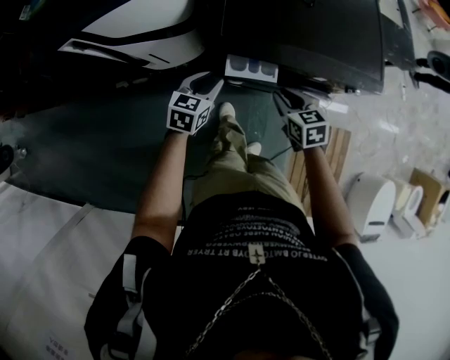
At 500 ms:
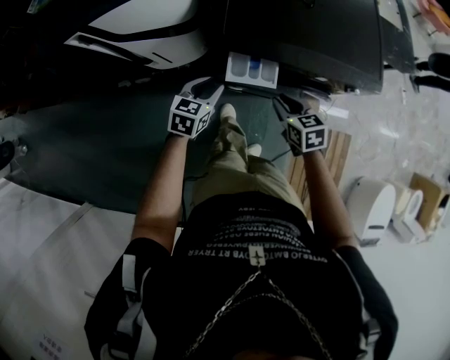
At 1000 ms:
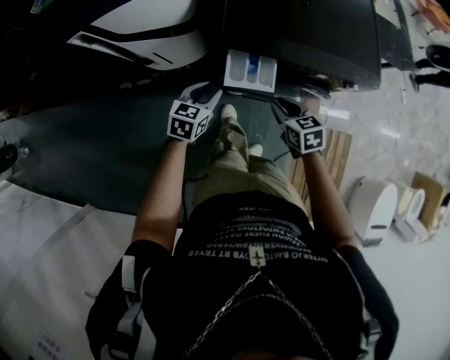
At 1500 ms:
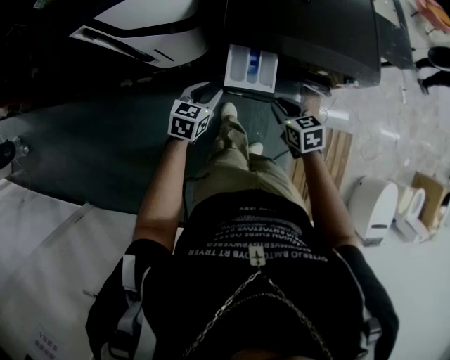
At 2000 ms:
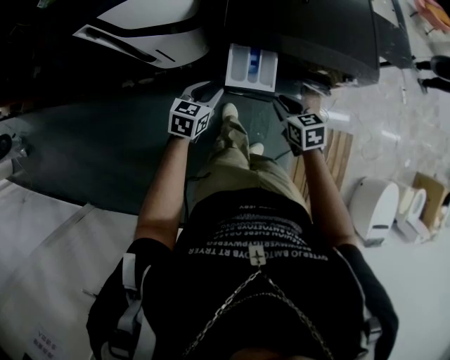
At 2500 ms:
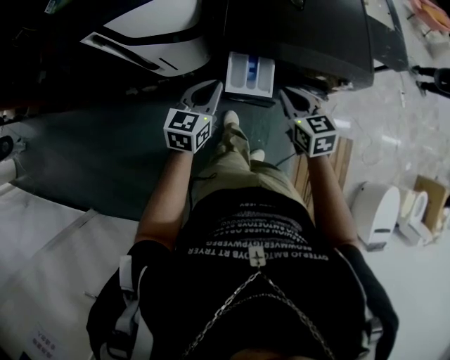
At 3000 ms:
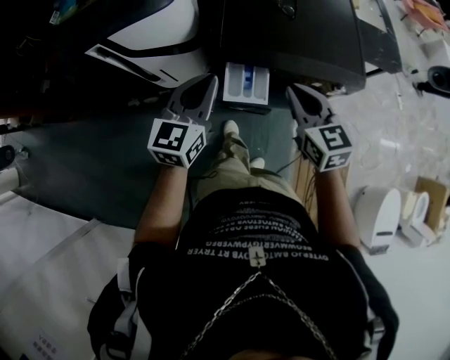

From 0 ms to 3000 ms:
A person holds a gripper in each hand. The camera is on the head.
From 0 ms to 1500 ms: Both grippers travel together backward, approximately 5 cm.
From 1500 ms to 3000 ms: The two grippers go approximately 25 cm upward. The right gripper turns by about 30 degrees; the left gripper swivels roughly 30 degrees, and closes.

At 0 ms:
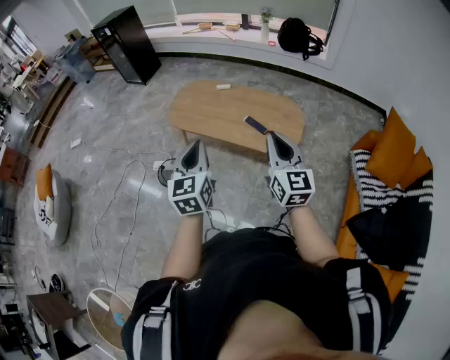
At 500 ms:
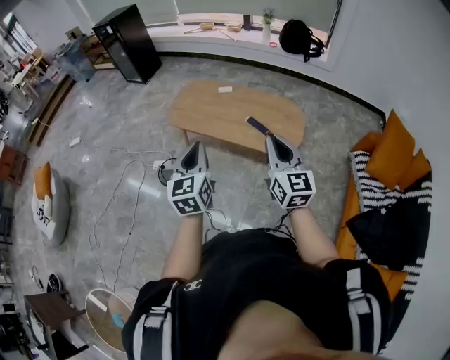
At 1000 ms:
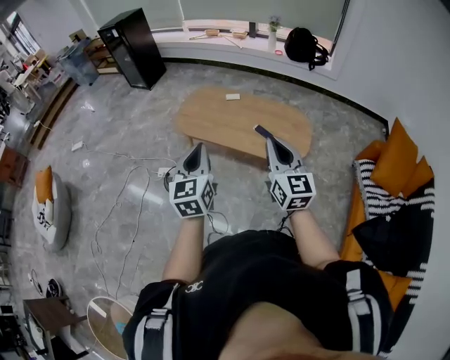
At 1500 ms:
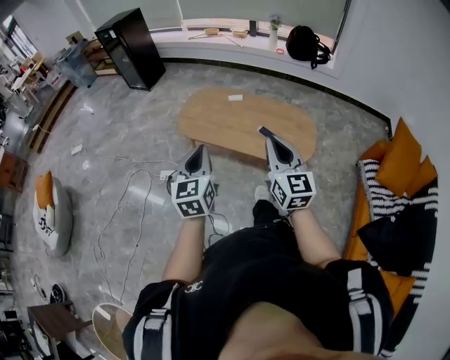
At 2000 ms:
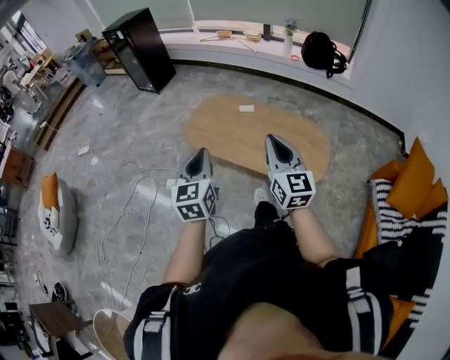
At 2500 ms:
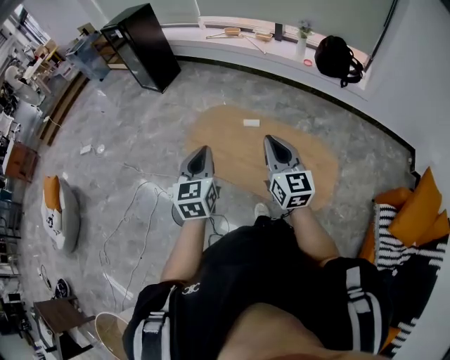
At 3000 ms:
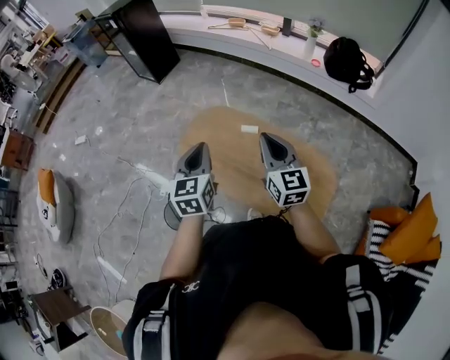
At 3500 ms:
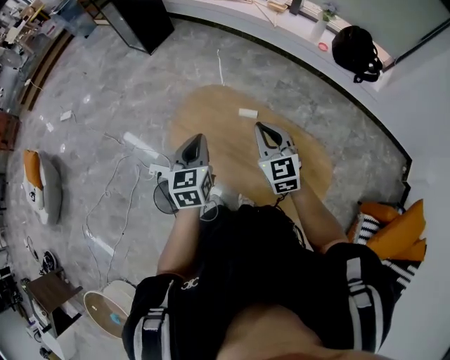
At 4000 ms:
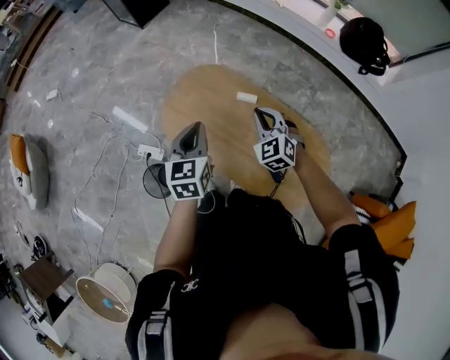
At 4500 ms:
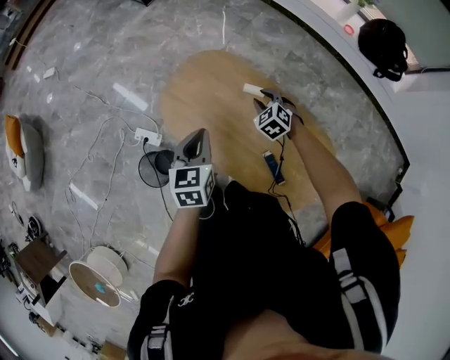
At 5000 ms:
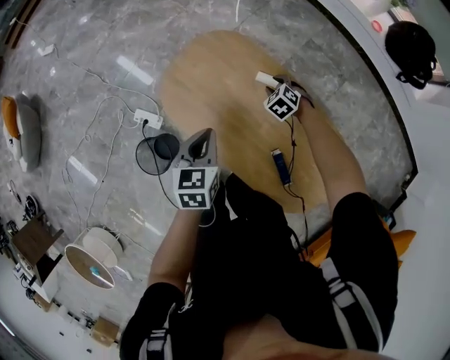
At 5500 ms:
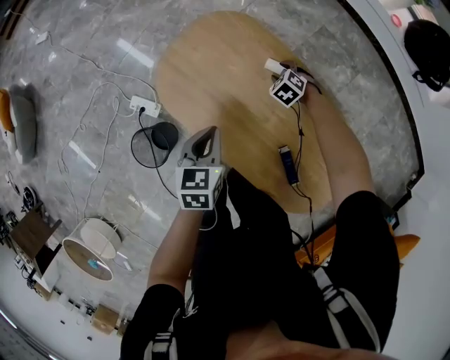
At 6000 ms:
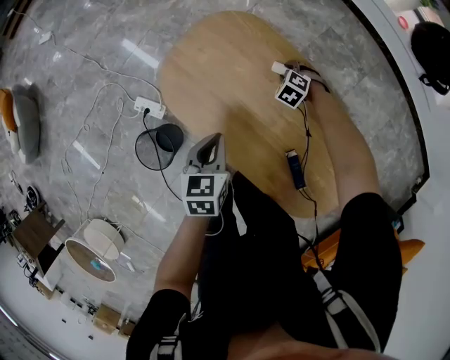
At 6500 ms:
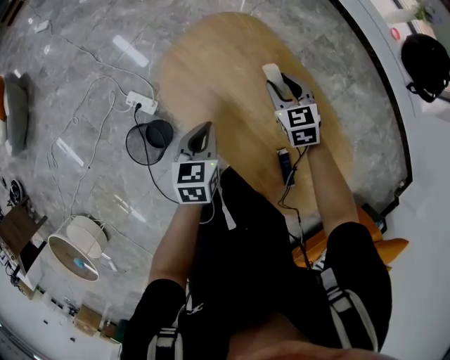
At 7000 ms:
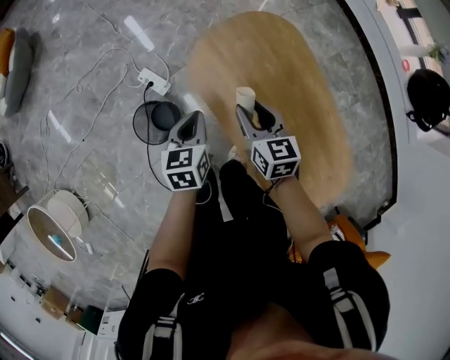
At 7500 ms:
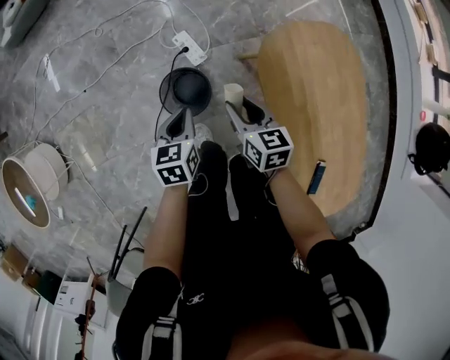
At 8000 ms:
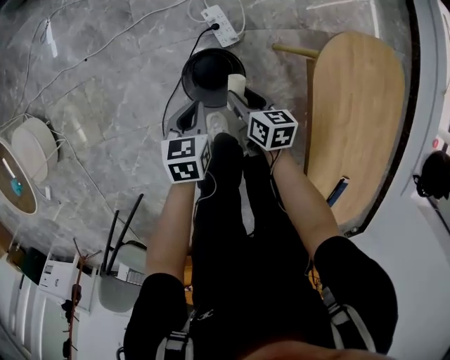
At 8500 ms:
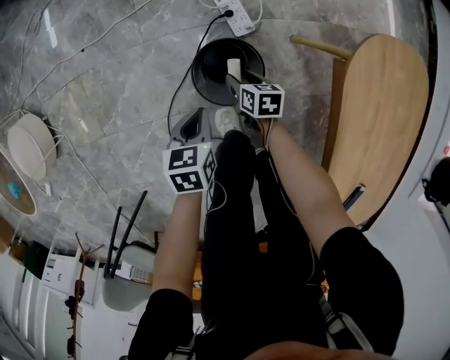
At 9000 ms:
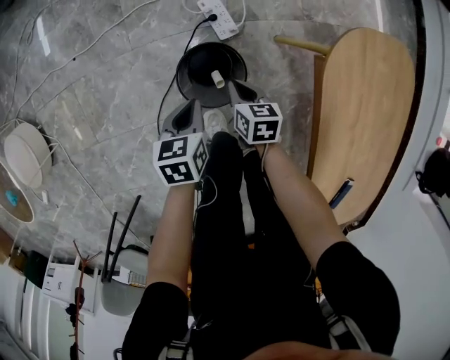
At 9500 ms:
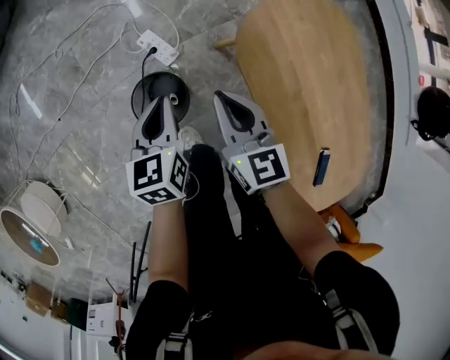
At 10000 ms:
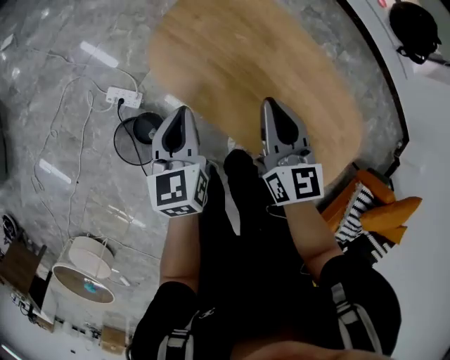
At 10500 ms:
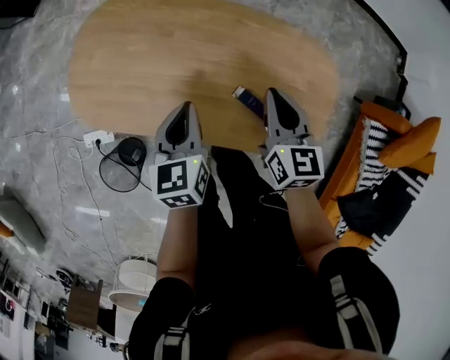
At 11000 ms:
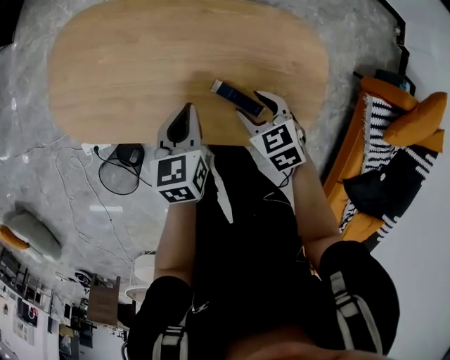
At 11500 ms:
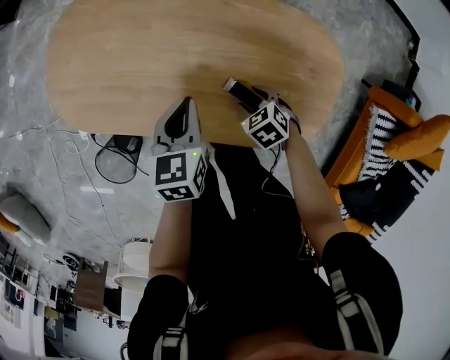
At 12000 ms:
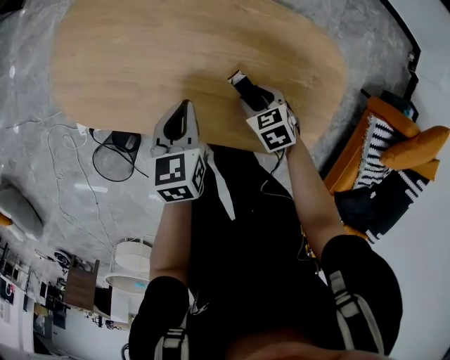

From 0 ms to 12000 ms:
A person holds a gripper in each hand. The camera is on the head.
From 0 ms to 2000 ms: Both grippers travel together forward and to the left, approximately 20 cm.
From 2000 ms to 4000 ms: The left gripper moves forward, some 40 cm, while the right gripper heads forward and downward, covering approximately 50 cm, and tilts its fingers roughly 40 degrees downward.
From 4000 ms to 6000 ms: The left gripper shifts some 25 cm downward, and rotates approximately 20 degrees. The right gripper goes approximately 40 cm downward and forward, points its fingers approximately 40 degrees further downward, and opens.
From 6000 ms to 8000 ms: The pair of grippers is taken some 60 cm. The left gripper turns by about 40 degrees. The right gripper swivels roughly 60 degrees.
From 8000 ms to 10000 ms: The left gripper shifts by roughly 40 cm, and swivels roughly 40 degrees; the right gripper ends up roughly 50 cm from where it was, rotates some 60 degrees, and closes up.
From 10000 ms to 12000 ms: The left gripper moves some 30 cm, and swivels roughly 30 degrees. Meanwhile the right gripper ends up about 40 cm from where it was, angles its fingers downward, by about 50 degrees, and opens its fingers.

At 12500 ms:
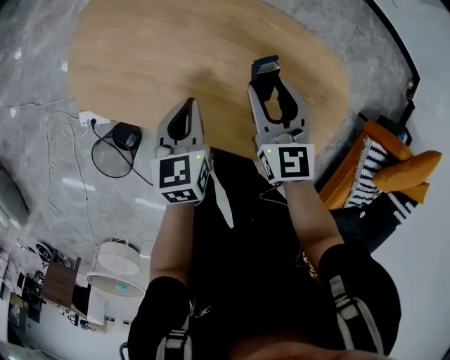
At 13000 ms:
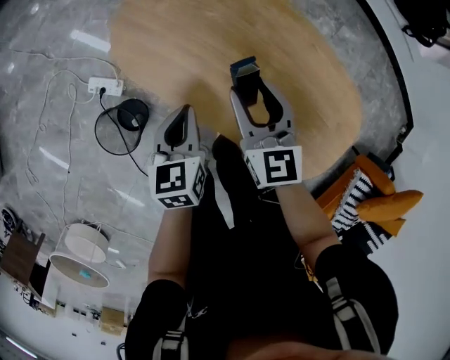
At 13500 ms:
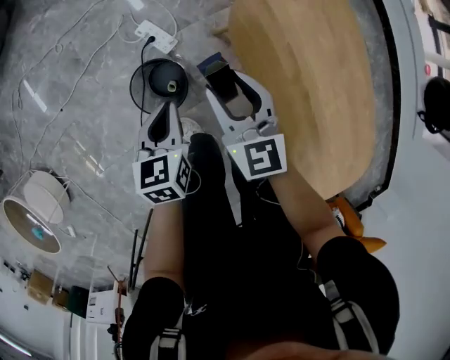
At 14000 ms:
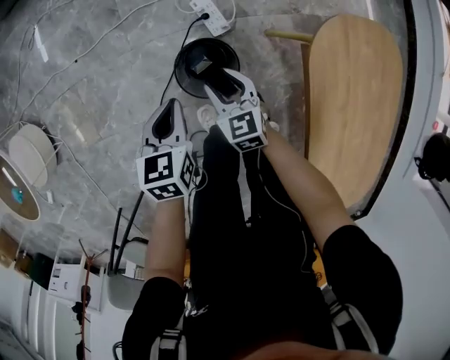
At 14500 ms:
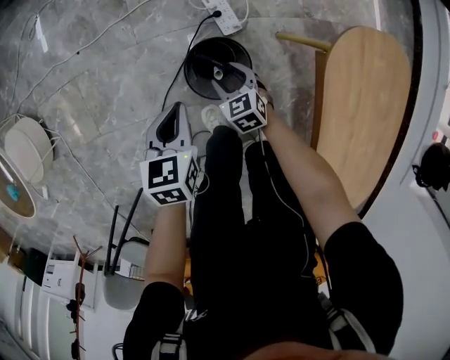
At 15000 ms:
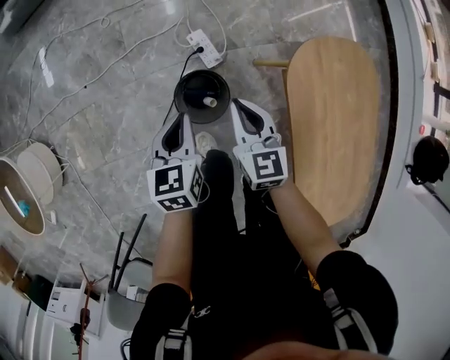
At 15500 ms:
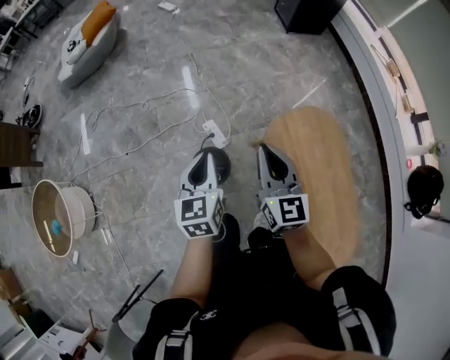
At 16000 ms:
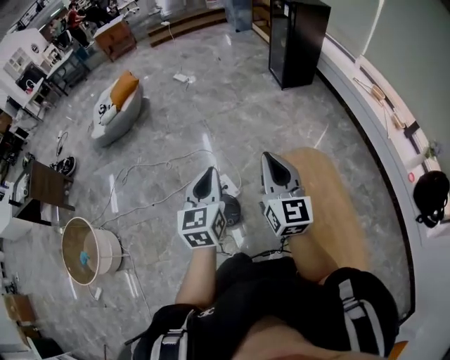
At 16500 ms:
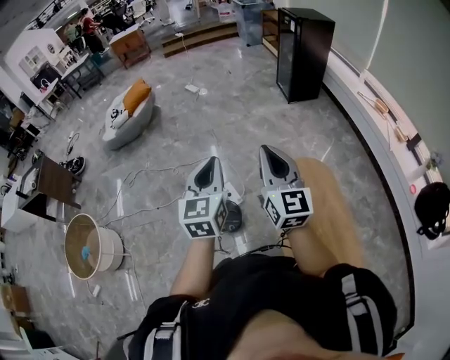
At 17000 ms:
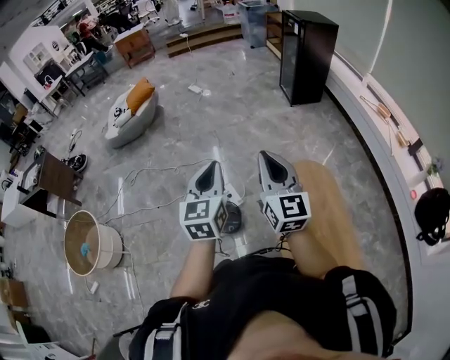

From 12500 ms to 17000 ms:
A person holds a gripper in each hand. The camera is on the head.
From 12500 ms to 14500 ms: The pair of grippers is taken roughly 70 cm. The left gripper changes its angle by roughly 60 degrees; the right gripper turns by roughly 90 degrees.
From 14500 ms to 17000 ms: The grippers both shift upward by some 70 cm. The left gripper tilts its fingers roughly 40 degrees upward, while the right gripper tilts its fingers about 60 degrees upward, and closes its fingers.

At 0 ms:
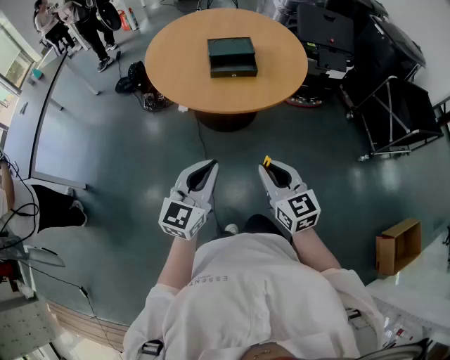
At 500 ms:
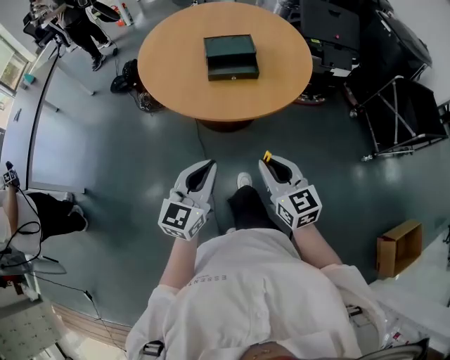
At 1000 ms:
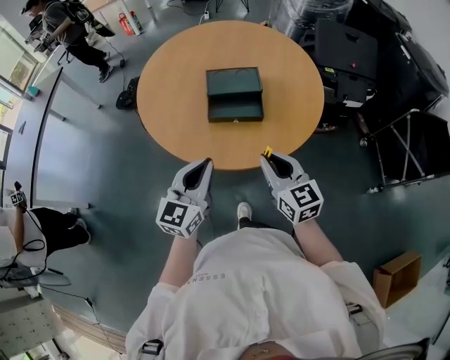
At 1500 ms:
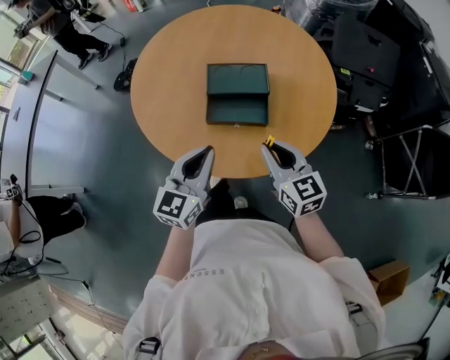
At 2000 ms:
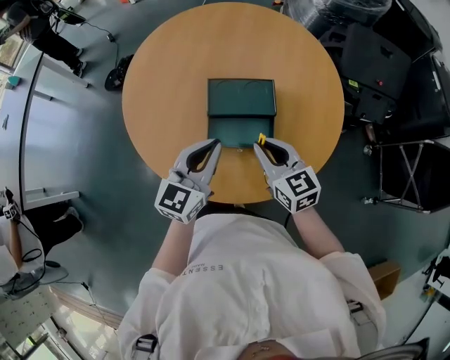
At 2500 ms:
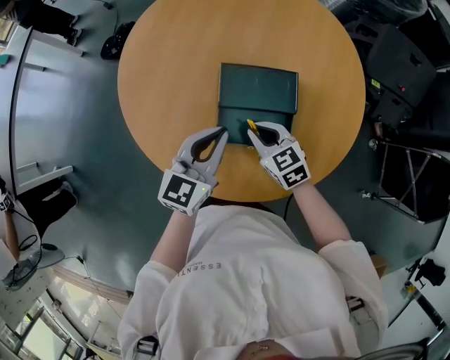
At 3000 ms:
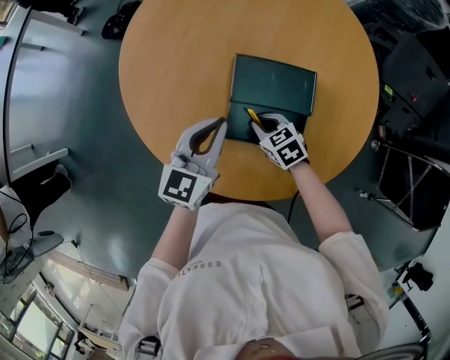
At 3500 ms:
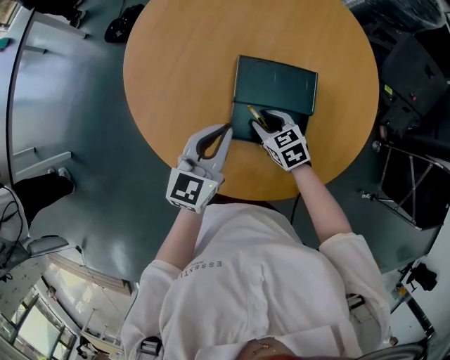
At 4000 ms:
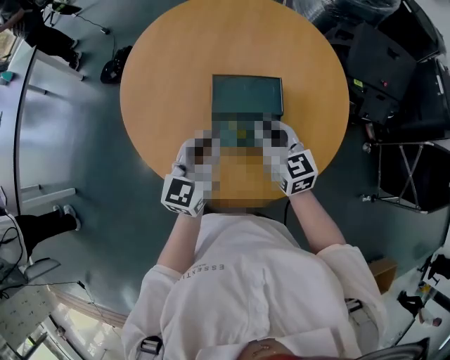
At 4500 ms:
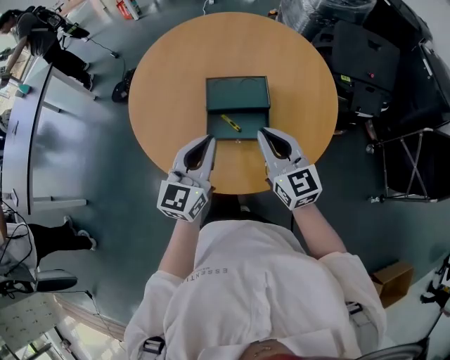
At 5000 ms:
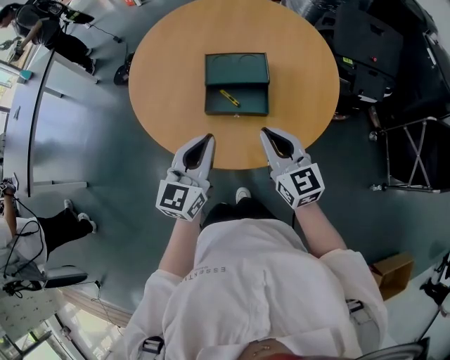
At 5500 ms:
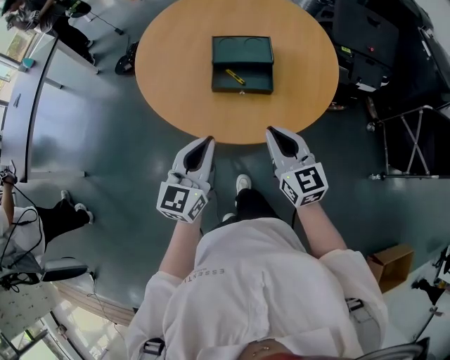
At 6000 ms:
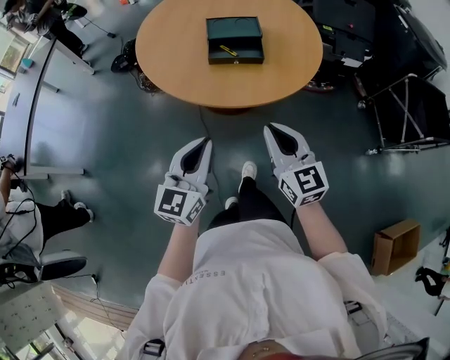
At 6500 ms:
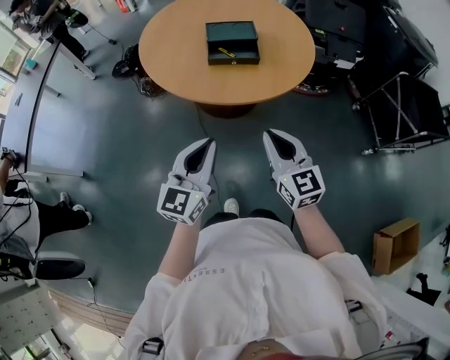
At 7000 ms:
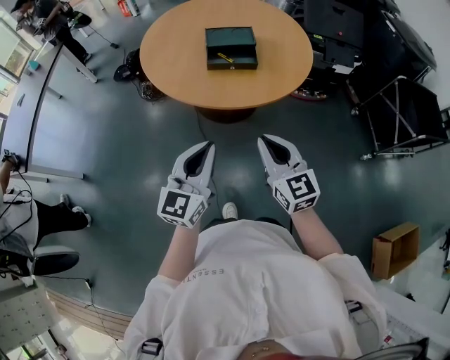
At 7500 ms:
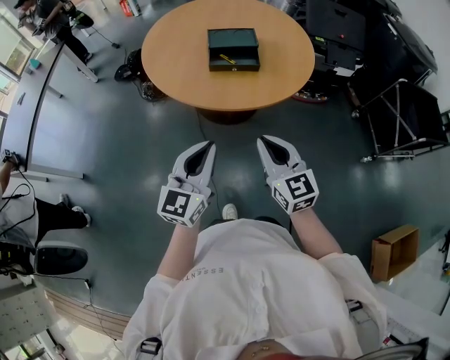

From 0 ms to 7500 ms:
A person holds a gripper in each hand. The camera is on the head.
From 0 ms to 2000 ms: The two grippers travel together, forward, some 50 cm.
From 2000 ms to 4000 ms: The left gripper travels downward and back again, approximately 10 cm each way; the right gripper goes approximately 5 cm forward, goes downward and returns, approximately 20 cm each way, and opens, then closes once more.
From 4000 ms to 5500 ms: The grippers both shift backward by approximately 25 cm.
From 5500 ms to 7500 ms: The two grippers go roughly 20 cm backward.
